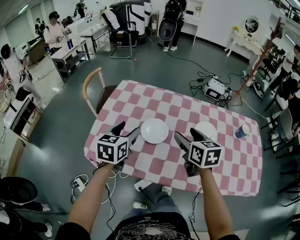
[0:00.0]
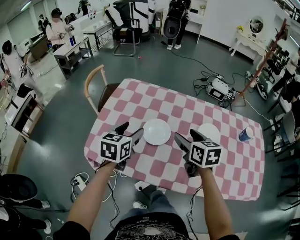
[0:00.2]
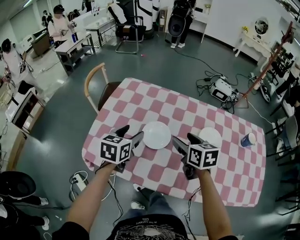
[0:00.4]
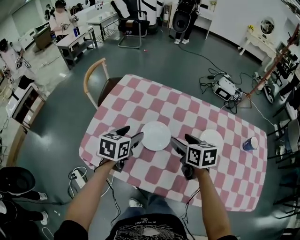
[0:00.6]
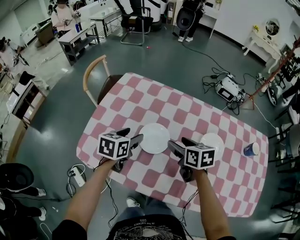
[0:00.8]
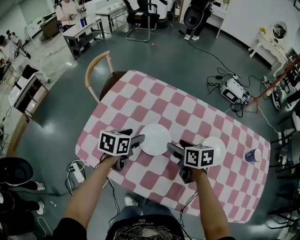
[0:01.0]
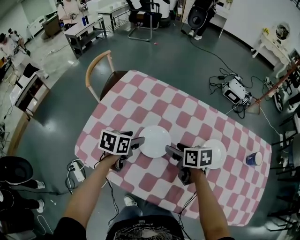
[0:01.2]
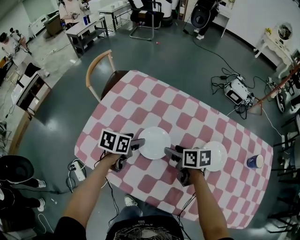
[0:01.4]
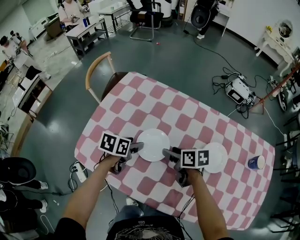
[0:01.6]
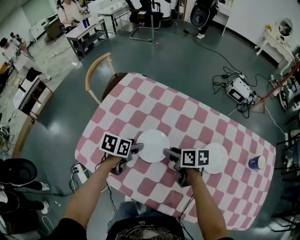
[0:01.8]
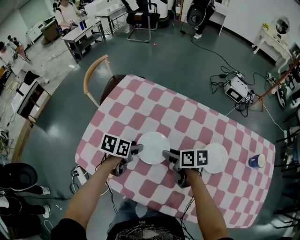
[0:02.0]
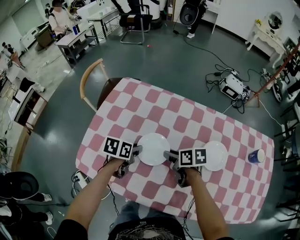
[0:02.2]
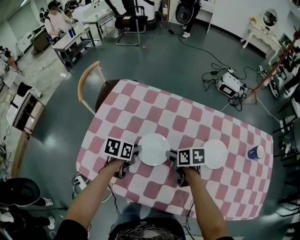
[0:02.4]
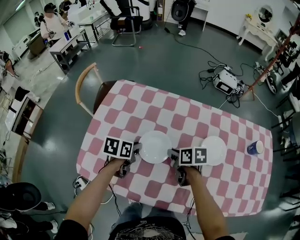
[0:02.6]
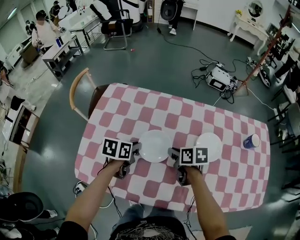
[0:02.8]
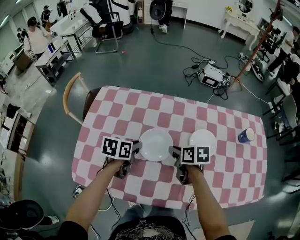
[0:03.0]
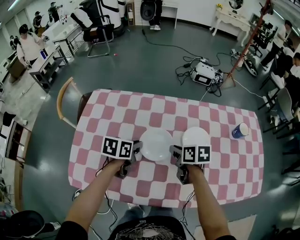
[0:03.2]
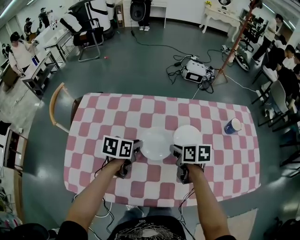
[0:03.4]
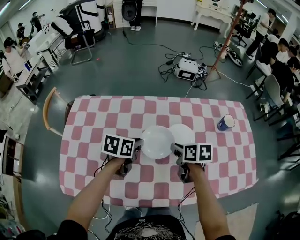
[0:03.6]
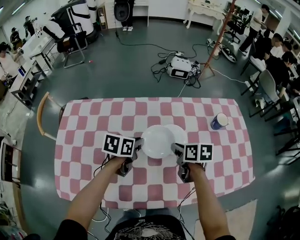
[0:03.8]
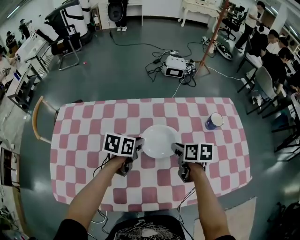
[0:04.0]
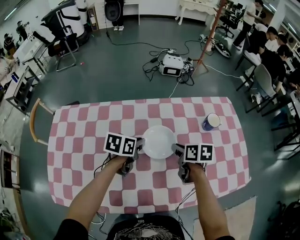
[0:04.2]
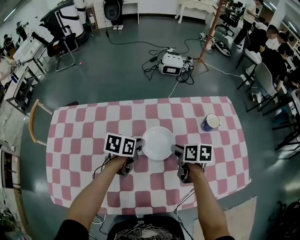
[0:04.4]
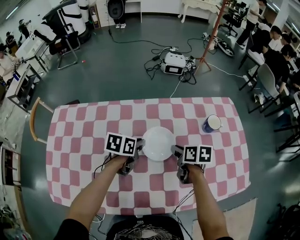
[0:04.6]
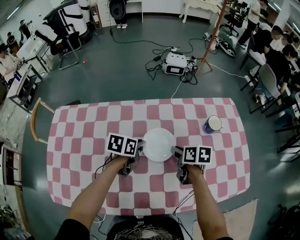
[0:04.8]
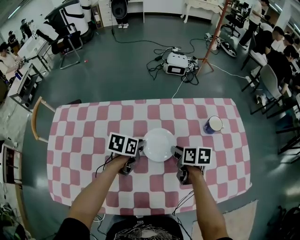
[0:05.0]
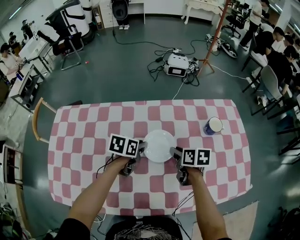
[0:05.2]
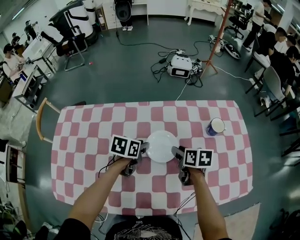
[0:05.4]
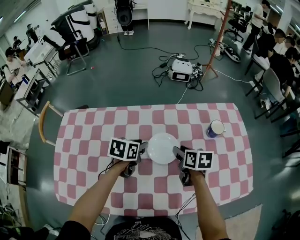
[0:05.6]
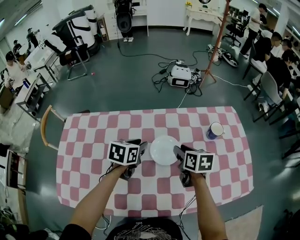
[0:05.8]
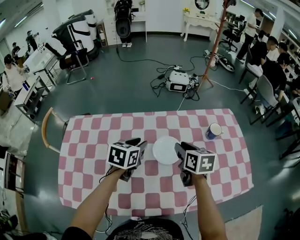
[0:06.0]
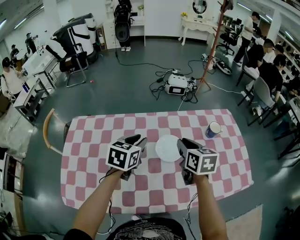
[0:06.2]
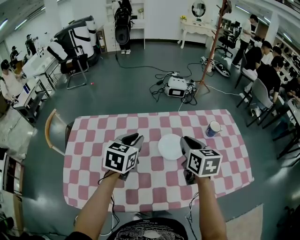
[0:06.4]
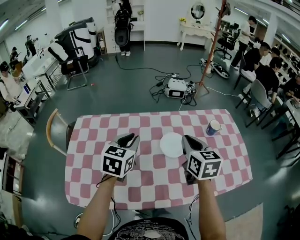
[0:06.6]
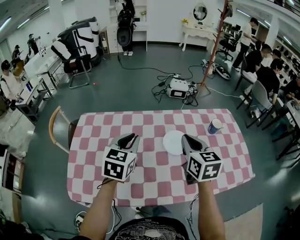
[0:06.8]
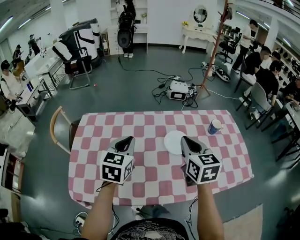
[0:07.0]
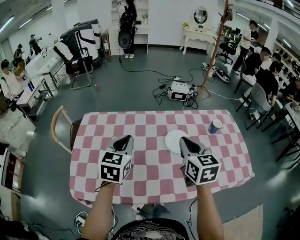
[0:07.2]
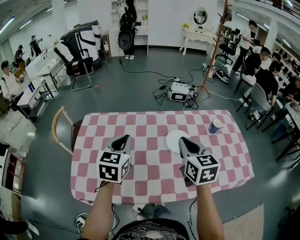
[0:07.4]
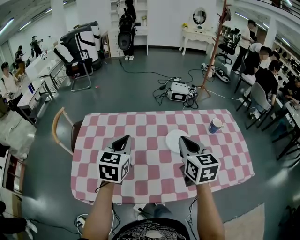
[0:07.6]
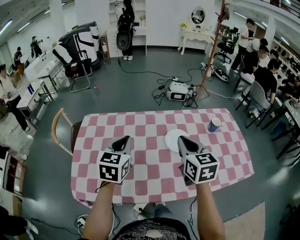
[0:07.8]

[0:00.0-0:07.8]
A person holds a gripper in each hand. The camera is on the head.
0:00.0 to 0:01.6: The right gripper goes roughly 20 cm downward and forward, and changes its angle by roughly 40 degrees; the left gripper heads downward, covering some 20 cm, and changes its angle by some 30 degrees.
0:01.6 to 0:03.2: The grippers both shift to the right by roughly 10 cm. The right gripper turns by roughly 20 degrees, and closes its fingers, while the left gripper closes.
0:03.2 to 0:04.6: The left gripper travels to the right and forward by some 20 cm, while the right gripper shifts roughly 20 cm to the right.
0:04.6 to 0:06.2: Both grippers travel together upward, about 15 cm. The left gripper turns by about 30 degrees. Meanwhile the right gripper swivels about 30 degrees.
0:06.2 to 0:07.8: The right gripper is displaced backward, upward and to the left by about 15 cm. Meanwhile the left gripper travels to the left, backward and upward by some 15 cm, and closes.

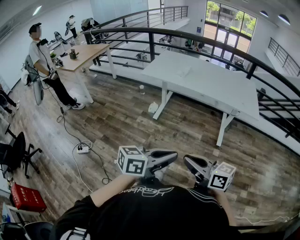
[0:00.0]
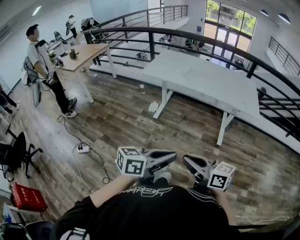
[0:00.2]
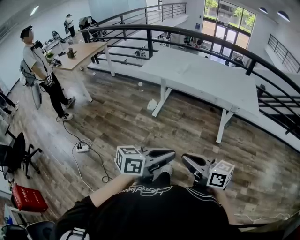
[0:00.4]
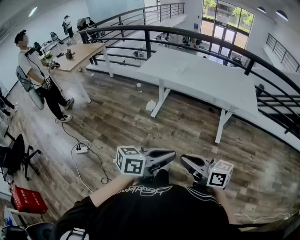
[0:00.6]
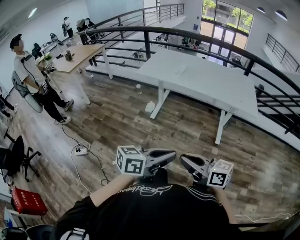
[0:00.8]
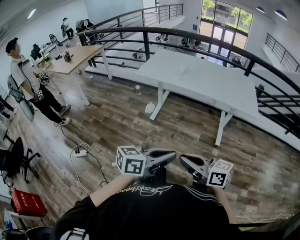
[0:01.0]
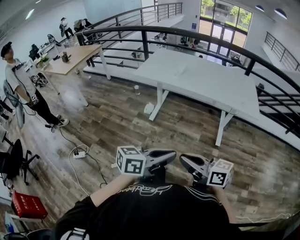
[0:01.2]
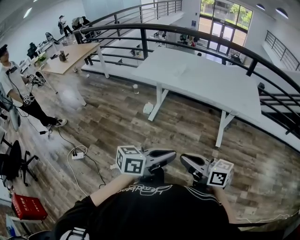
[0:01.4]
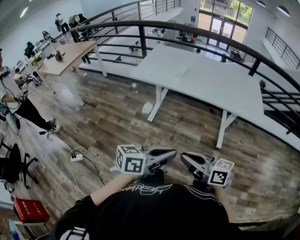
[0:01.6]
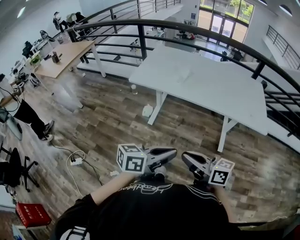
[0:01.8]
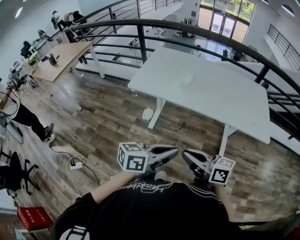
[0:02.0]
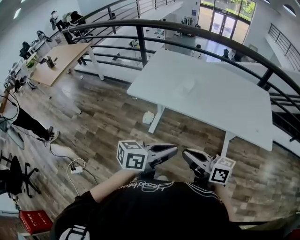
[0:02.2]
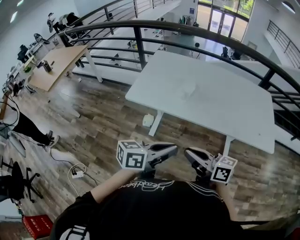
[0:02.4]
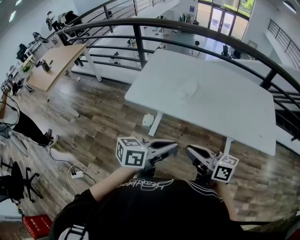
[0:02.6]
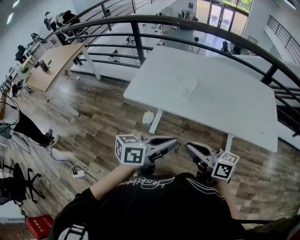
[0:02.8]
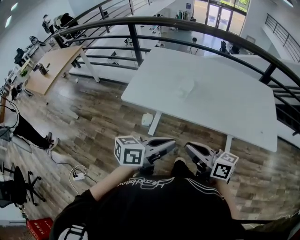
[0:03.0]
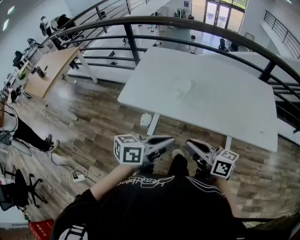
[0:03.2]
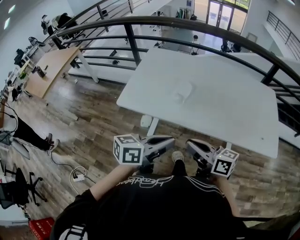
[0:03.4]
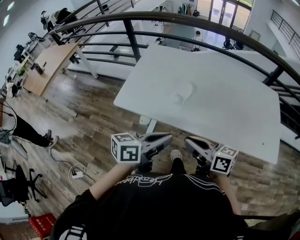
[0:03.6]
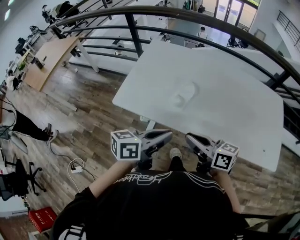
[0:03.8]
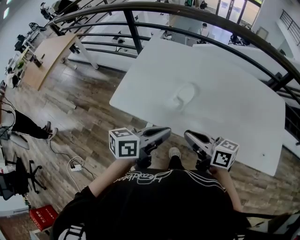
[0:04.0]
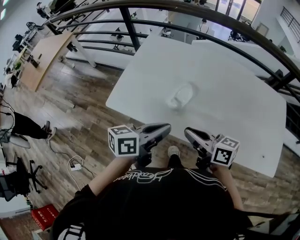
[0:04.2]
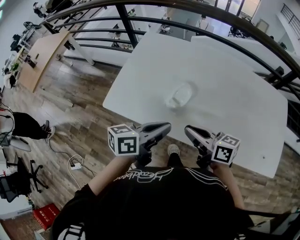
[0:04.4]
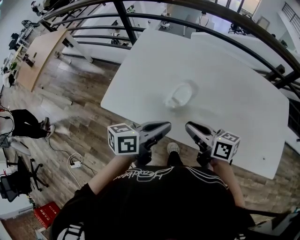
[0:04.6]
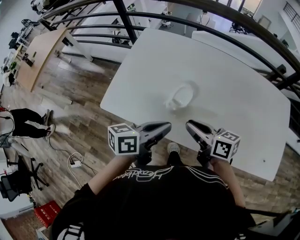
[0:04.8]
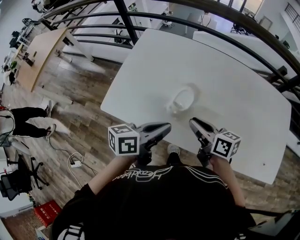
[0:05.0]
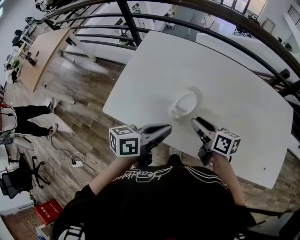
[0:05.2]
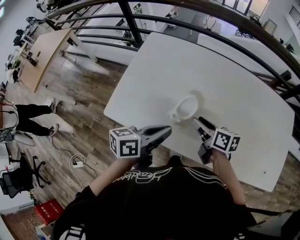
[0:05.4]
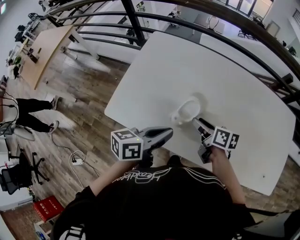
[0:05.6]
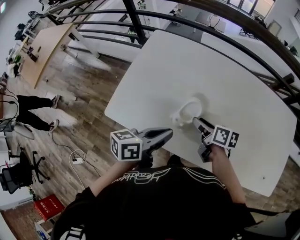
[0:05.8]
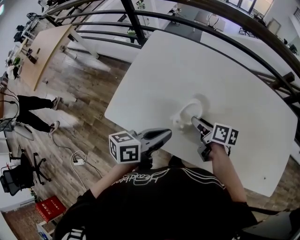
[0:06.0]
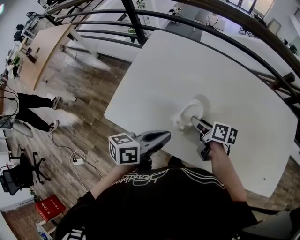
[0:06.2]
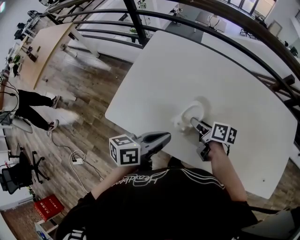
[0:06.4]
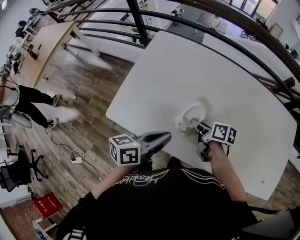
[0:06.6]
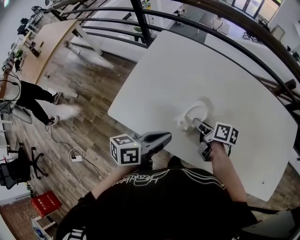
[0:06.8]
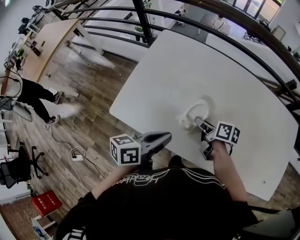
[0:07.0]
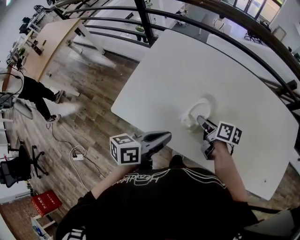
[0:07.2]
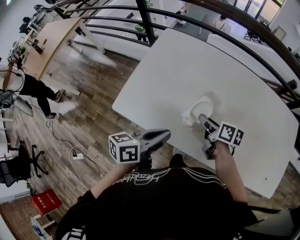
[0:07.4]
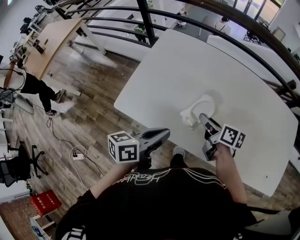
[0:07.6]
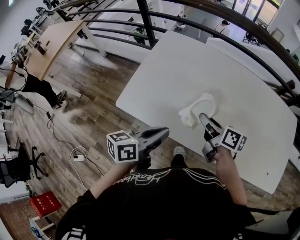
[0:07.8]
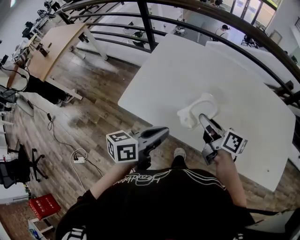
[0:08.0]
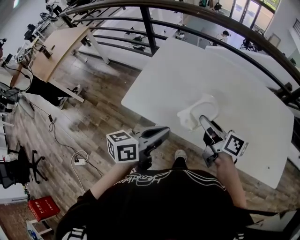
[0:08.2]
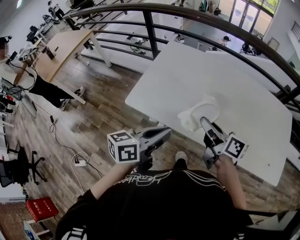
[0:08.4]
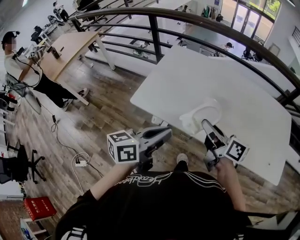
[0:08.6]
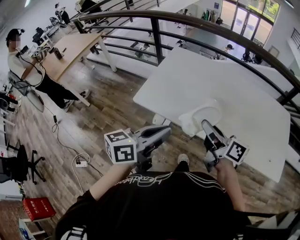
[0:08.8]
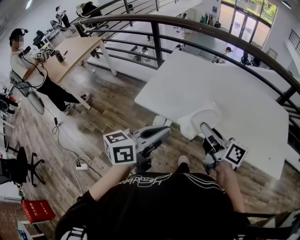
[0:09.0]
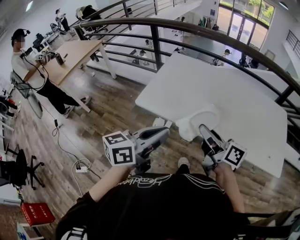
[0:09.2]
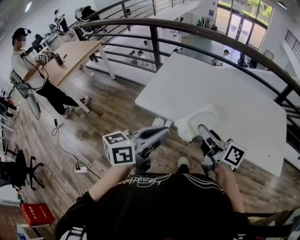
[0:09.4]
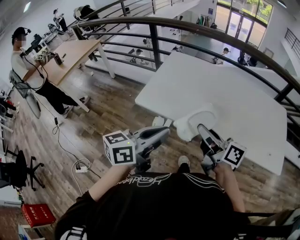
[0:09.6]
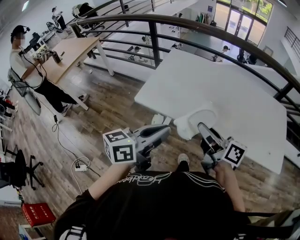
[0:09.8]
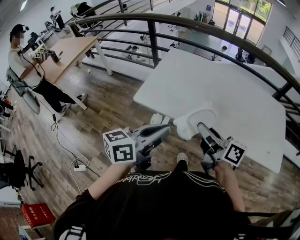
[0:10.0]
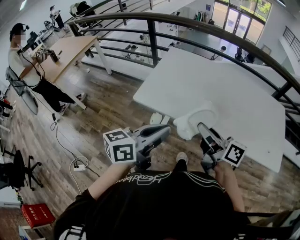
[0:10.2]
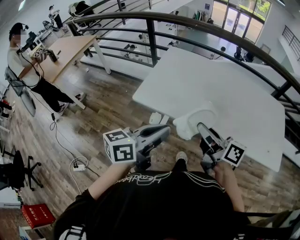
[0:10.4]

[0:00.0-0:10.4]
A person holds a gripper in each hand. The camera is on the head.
0:00.0 to 0:01.4: Both grippers travel together forward, approximately 10 cm.
0:01.4 to 0:03.0: The two grippers travel together, forward, roughly 40 cm.
0:03.0 to 0:04.4: Both grippers travel together forward, roughly 25 cm.
0:04.4 to 0:06.0: The left gripper shifts approximately 10 cm forward, while the right gripper travels forward and downward by some 20 cm, turns by roughly 30 degrees, and opens.
0:06.0 to 0:07.4: The left gripper changes place by some 5 cm.
0:07.4 to 0:09.0: Both grippers move backward and upward, about 30 cm. The right gripper tilts its fingers some 30 degrees upward, while the left gripper swivels some 20 degrees.
0:09.0 to 0:10.4: There are only small adjustments of the grippers.

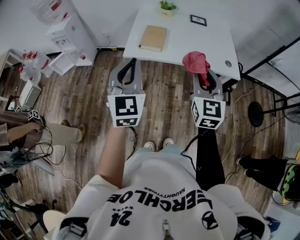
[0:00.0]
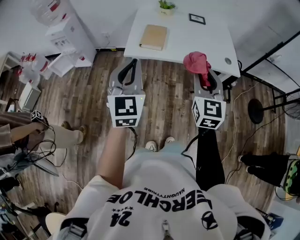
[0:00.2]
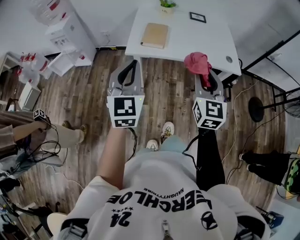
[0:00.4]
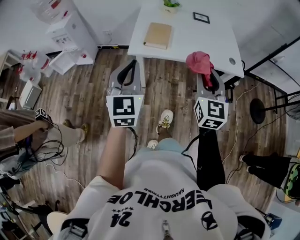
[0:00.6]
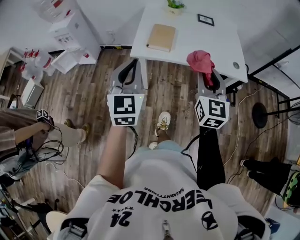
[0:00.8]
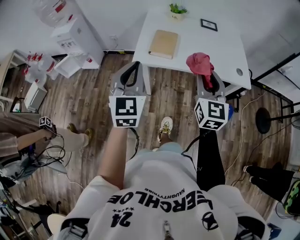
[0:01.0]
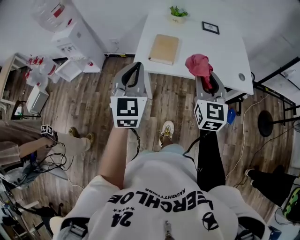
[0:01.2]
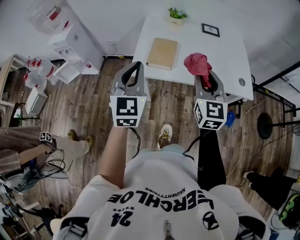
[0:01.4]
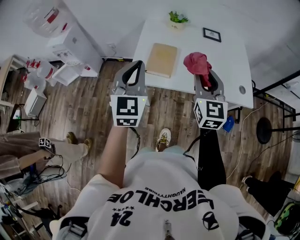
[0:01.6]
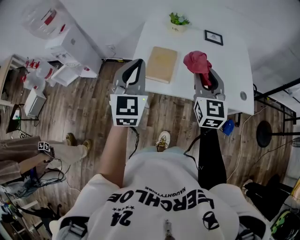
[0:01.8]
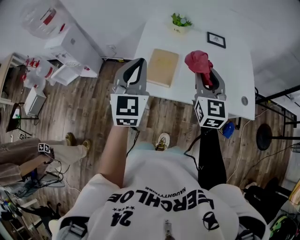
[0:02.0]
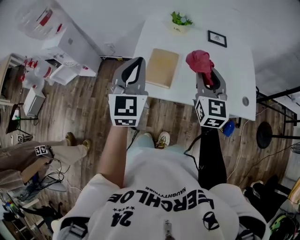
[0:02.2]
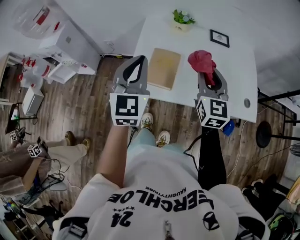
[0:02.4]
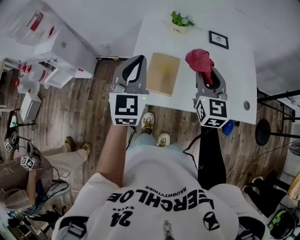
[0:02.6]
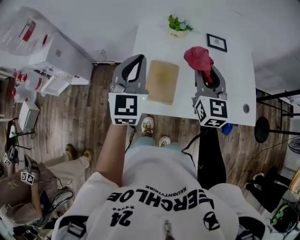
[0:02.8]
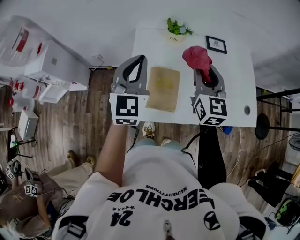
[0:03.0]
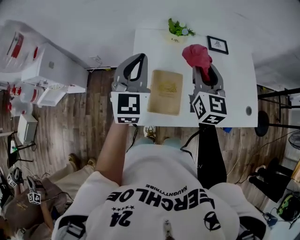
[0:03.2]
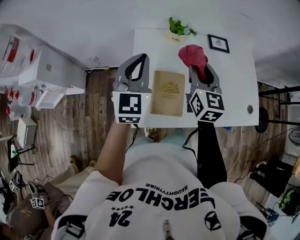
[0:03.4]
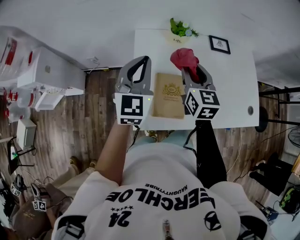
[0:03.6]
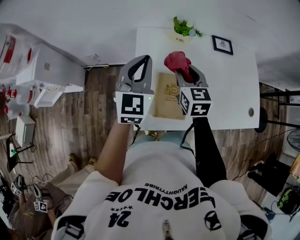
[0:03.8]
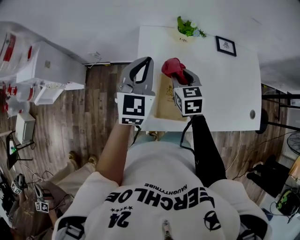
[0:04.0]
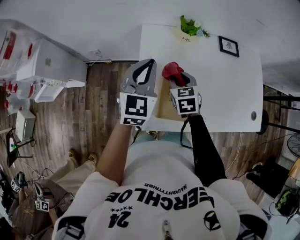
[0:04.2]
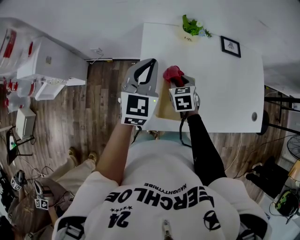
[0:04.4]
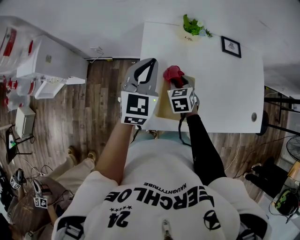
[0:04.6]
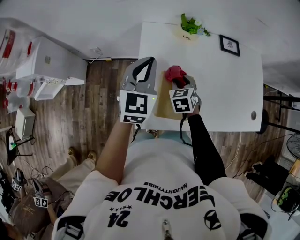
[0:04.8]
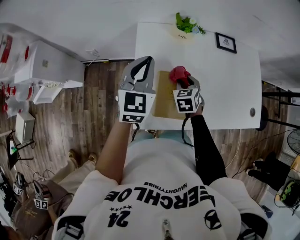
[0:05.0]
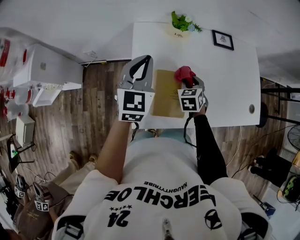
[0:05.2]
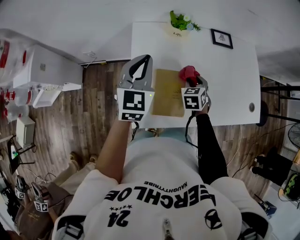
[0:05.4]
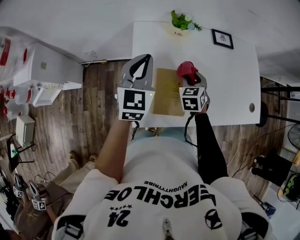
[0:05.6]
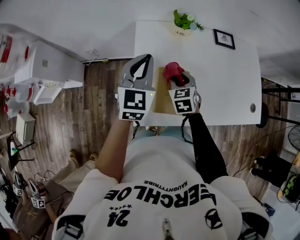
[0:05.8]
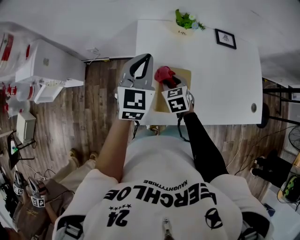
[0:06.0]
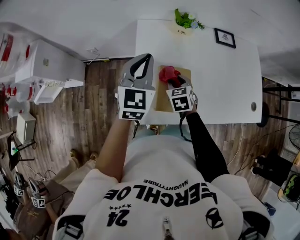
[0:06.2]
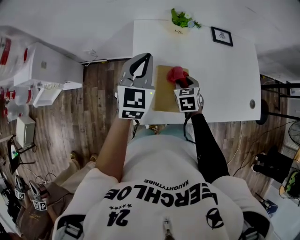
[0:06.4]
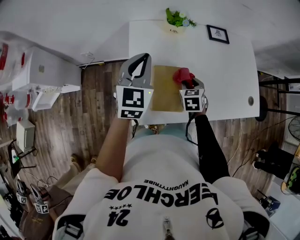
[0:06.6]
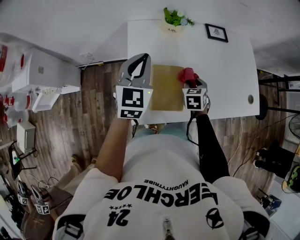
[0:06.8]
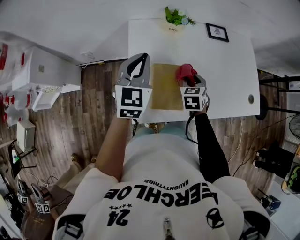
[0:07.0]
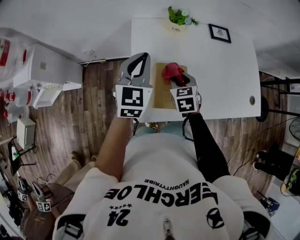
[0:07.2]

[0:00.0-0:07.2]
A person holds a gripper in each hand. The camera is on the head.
0:00.0 to 0:01.4: The grippers both shift forward by about 15 cm.
0:01.4 to 0:02.8: Both grippers move forward, roughly 25 cm.
0:02.8 to 0:04.4: The right gripper is displaced downward and to the left by approximately 30 cm, and tips its fingers downward by some 50 degrees; the left gripper travels forward and downward by some 15 cm.
0:04.4 to 0:05.8: The right gripper moves about 10 cm to the right and comes back.
0:05.8 to 0:07.2: The right gripper travels to the right and back again, approximately 10 cm each way.
